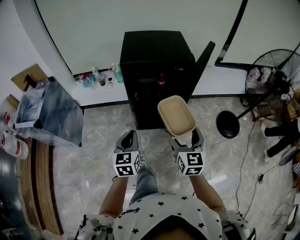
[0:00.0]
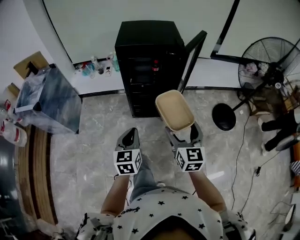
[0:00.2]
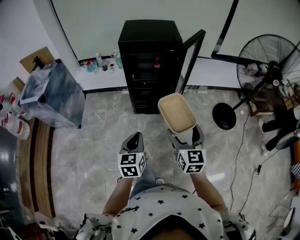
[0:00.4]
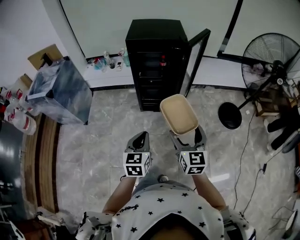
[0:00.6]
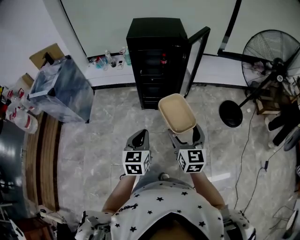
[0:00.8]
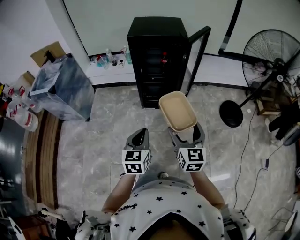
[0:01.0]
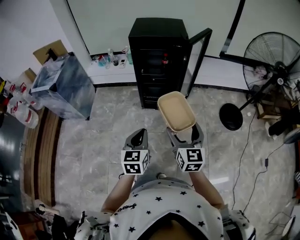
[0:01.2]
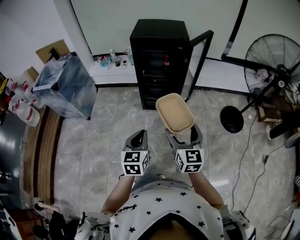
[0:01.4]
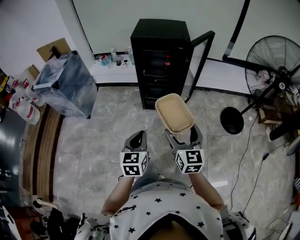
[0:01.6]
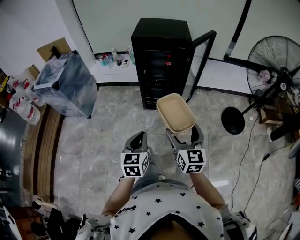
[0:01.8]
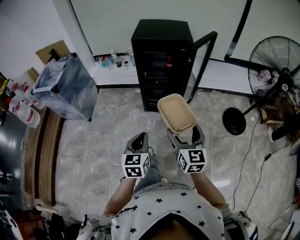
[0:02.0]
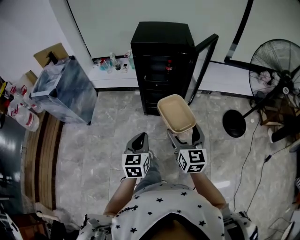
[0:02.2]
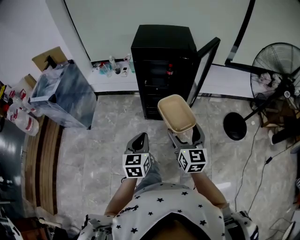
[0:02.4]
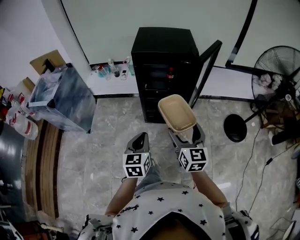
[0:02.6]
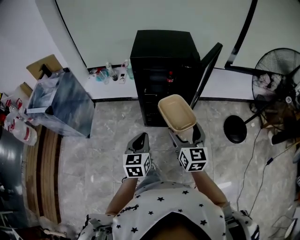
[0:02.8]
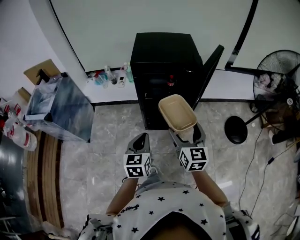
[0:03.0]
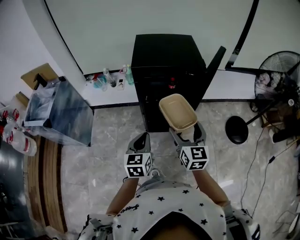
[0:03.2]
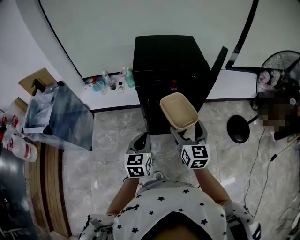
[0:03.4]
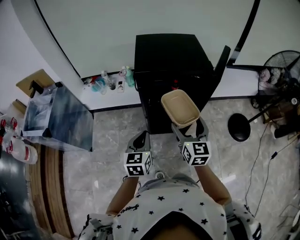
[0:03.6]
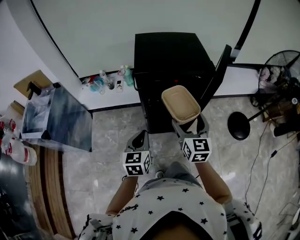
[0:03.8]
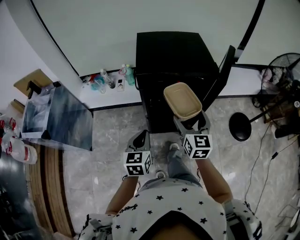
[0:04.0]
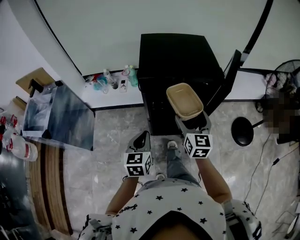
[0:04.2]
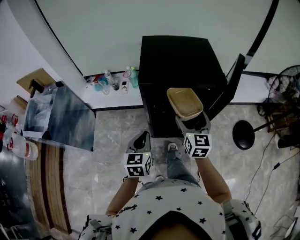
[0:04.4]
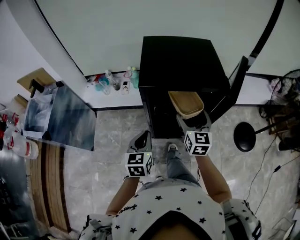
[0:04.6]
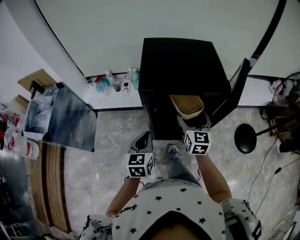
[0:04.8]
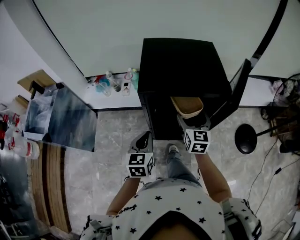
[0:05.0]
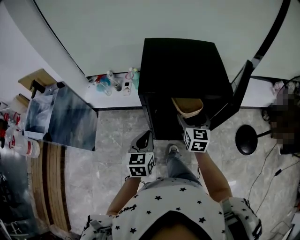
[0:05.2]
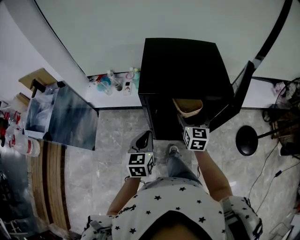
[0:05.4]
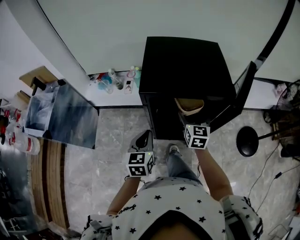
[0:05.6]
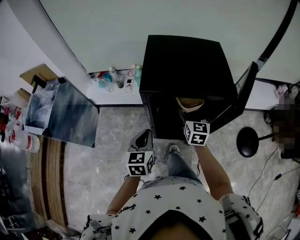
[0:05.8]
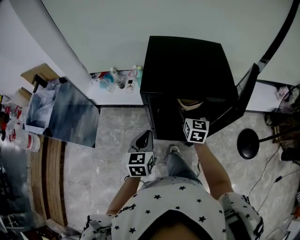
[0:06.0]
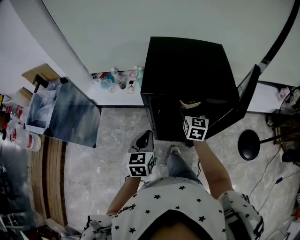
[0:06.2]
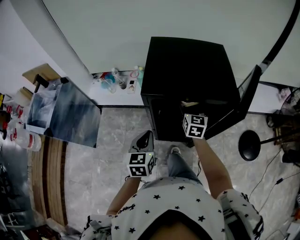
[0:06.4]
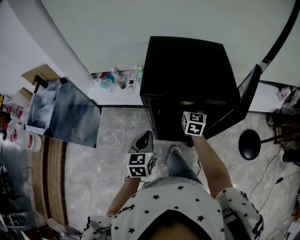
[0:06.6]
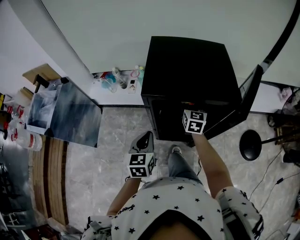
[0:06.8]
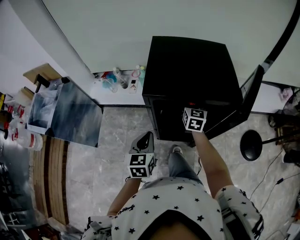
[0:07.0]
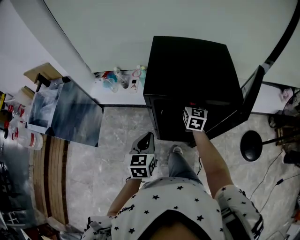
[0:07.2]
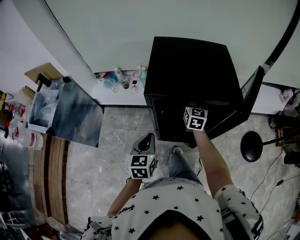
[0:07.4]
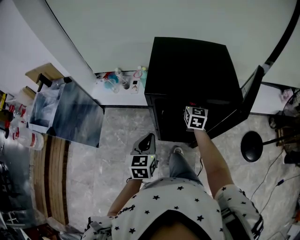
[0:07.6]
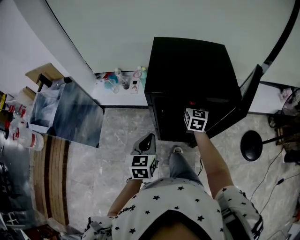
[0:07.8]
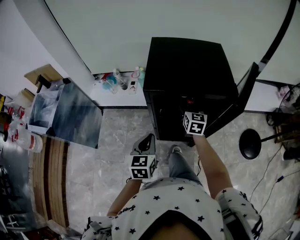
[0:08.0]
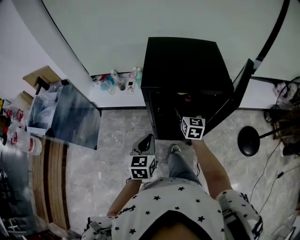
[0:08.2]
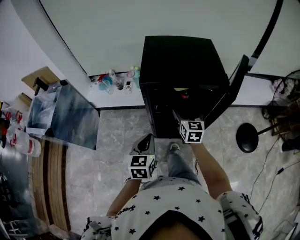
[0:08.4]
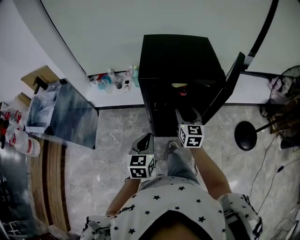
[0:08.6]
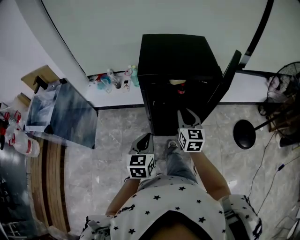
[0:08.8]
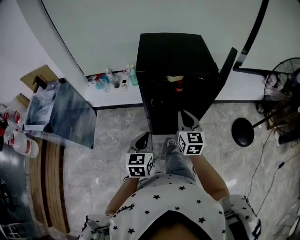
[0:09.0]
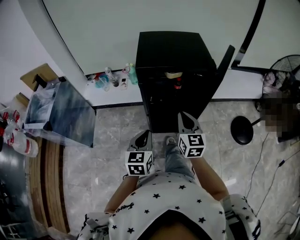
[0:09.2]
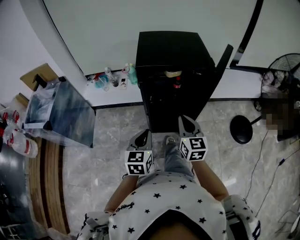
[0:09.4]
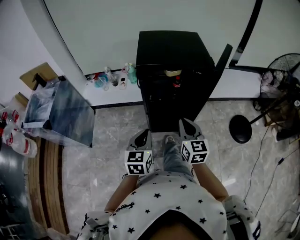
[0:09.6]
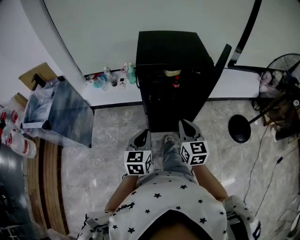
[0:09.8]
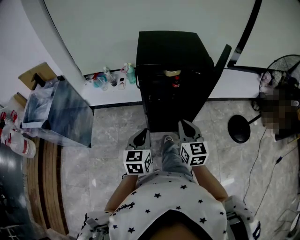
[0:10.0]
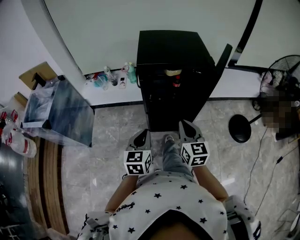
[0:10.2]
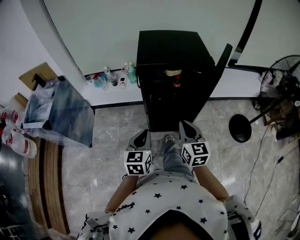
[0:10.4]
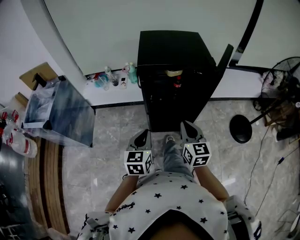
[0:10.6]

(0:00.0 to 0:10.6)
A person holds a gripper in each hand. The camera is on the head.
0:00.0 - 0:01.6: The two grippers go about 25 cm backward.
0:01.6 - 0:03.0: Both grippers travel together forward, approximately 25 cm.
0:03.0 - 0:04.6: Both grippers travel together forward, about 20 cm.
0:04.6 - 0:06.0: The right gripper is displaced forward and downward by about 10 cm.
0:06.0 - 0:07.6: The right gripper moves forward, about 5 cm.
0:07.6 - 0:09.0: The left gripper goes some 10 cm backward. The right gripper heads backward, covering about 25 cm, and closes.
0:09.0 - 0:10.6: The right gripper heads backward, covering roughly 10 cm.

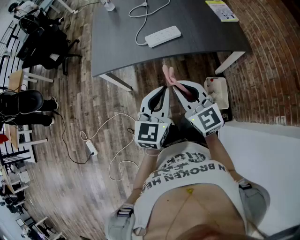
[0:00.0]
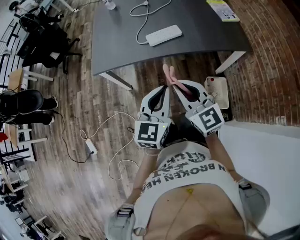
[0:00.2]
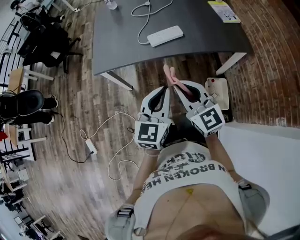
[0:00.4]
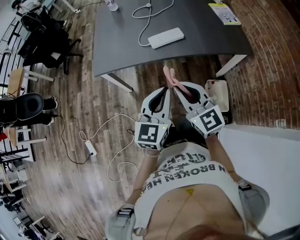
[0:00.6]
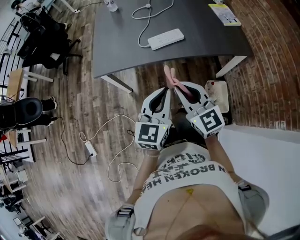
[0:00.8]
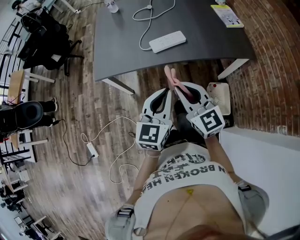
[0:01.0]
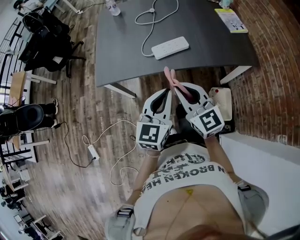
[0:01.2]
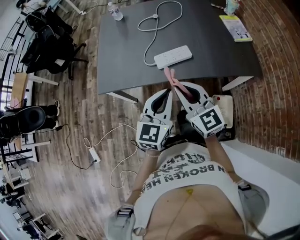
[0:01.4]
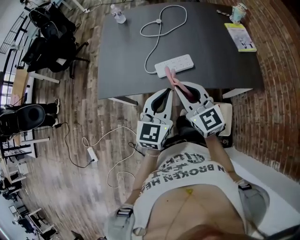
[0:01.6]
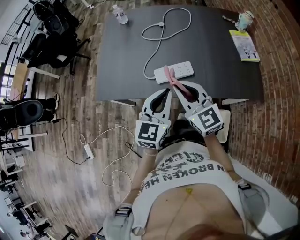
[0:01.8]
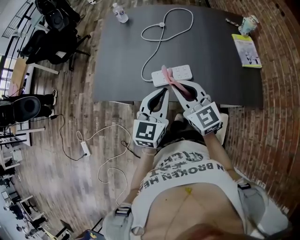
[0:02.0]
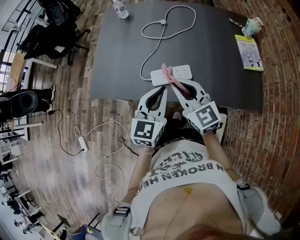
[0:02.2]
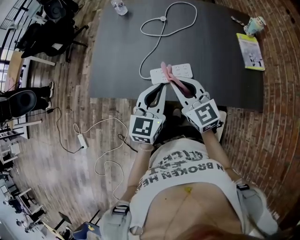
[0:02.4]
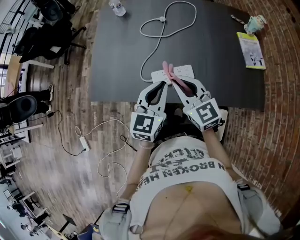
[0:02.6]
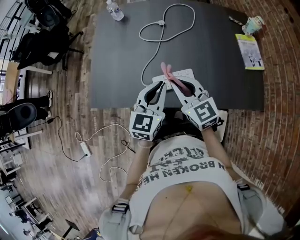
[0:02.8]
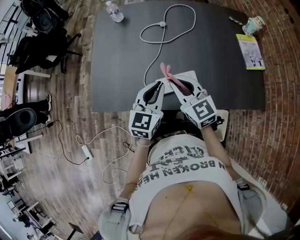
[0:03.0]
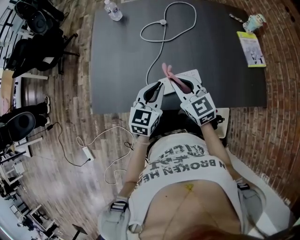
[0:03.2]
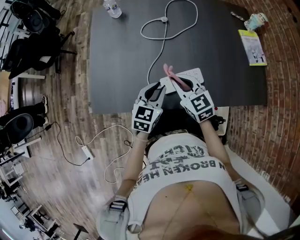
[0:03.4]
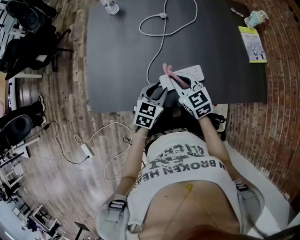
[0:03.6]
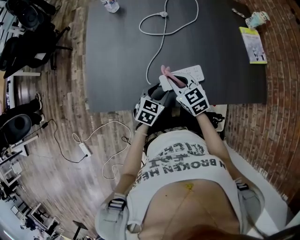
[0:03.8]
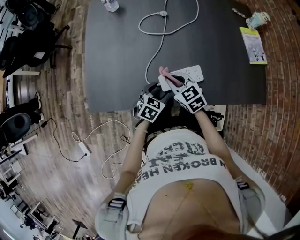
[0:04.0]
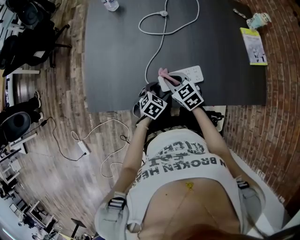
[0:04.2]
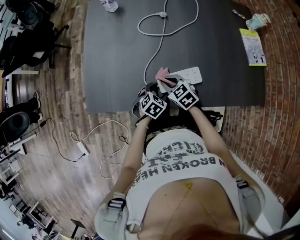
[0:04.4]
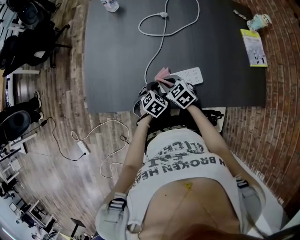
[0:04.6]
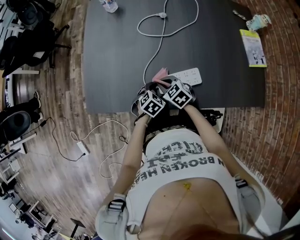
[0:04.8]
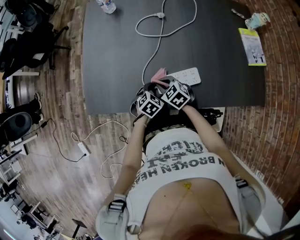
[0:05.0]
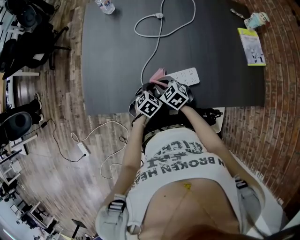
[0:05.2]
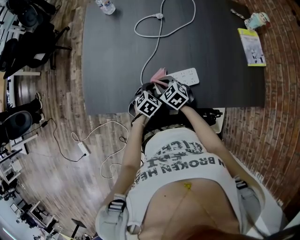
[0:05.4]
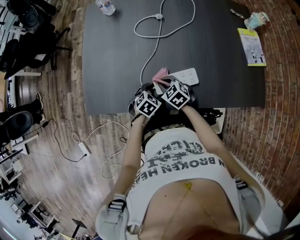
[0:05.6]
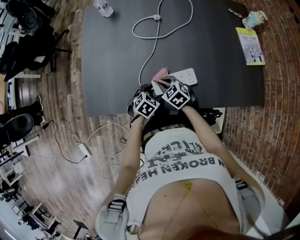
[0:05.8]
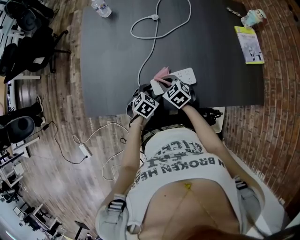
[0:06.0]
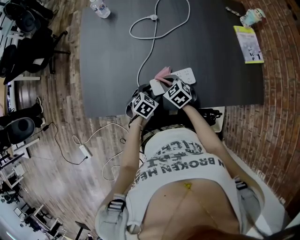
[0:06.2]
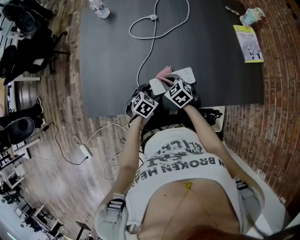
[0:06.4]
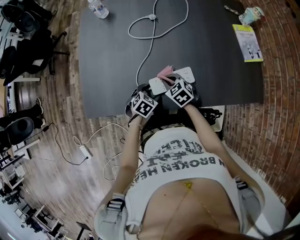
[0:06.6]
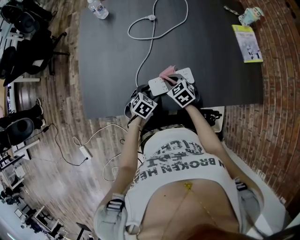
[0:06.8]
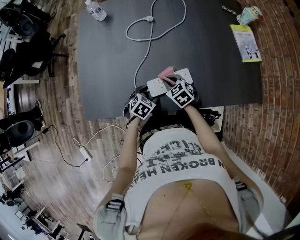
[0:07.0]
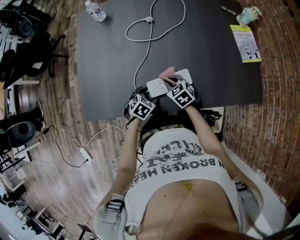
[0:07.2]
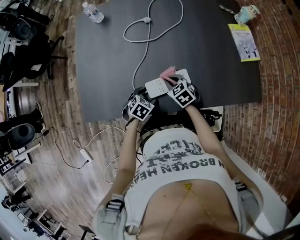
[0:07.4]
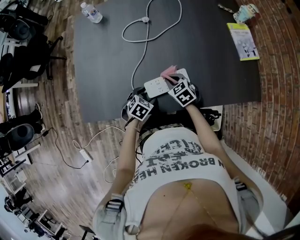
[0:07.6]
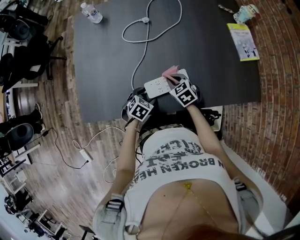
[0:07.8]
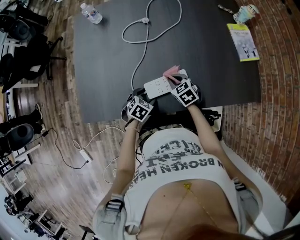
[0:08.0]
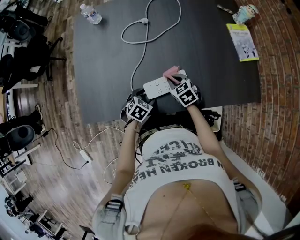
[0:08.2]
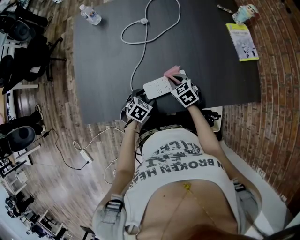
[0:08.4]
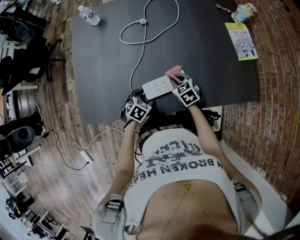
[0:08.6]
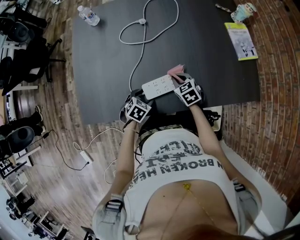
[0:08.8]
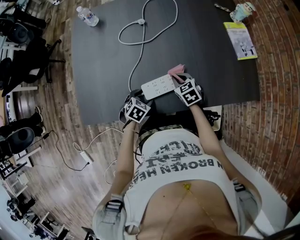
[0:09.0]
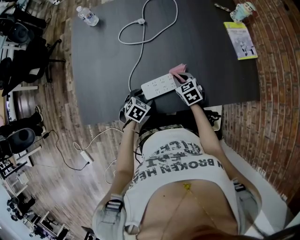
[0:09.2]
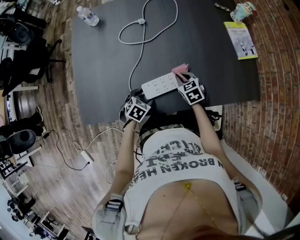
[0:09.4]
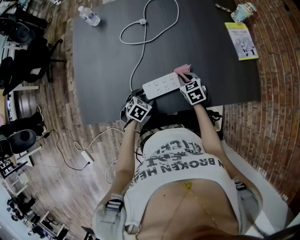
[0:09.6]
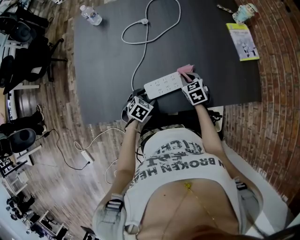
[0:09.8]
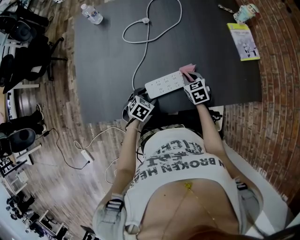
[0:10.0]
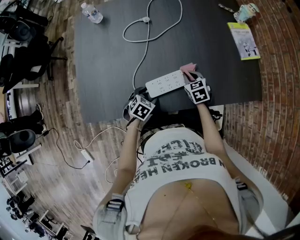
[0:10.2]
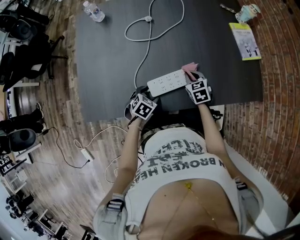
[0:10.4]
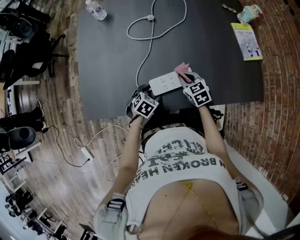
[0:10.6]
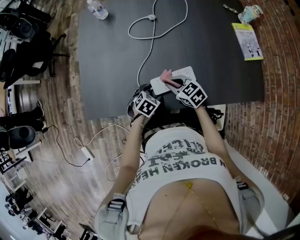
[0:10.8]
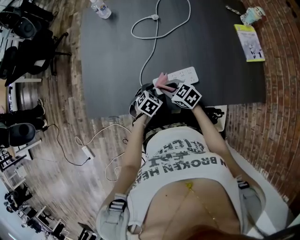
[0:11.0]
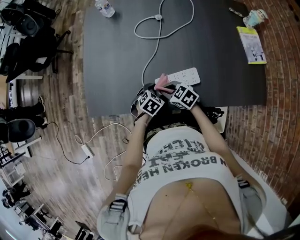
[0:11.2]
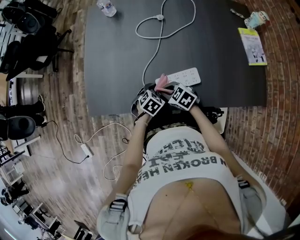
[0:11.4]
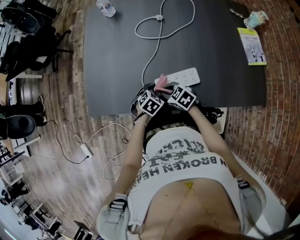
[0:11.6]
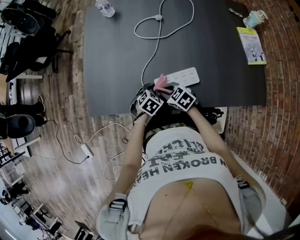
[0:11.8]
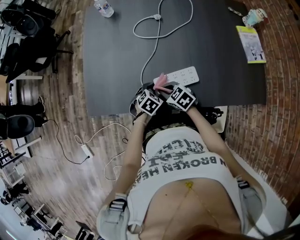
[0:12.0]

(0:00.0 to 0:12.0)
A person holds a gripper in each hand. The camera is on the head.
0:00.0 - 0:01.6: The grippers both shift forward by roughly 20 cm.
0:01.6 - 0:03.0: The grippers both shift forward by about 20 cm.
0:03.0 - 0:04.4: The grippers both shift downward by roughly 25 cm. The right gripper turns by approximately 30 degrees. The left gripper tilts its fingers some 40 degrees downward, and opens its fingers.
0:04.4 - 0:06.0: The grippers stay close to where they were, moving slightly.
0:06.0 - 0:07.6: The right gripper moves to the right, roughly 5 cm.
0:07.6 - 0:09.0: The right gripper heads to the right, covering about 5 cm.
0:09.0 - 0:10.4: There are only small adjustments of the grippers.
0:10.4 - 0:12.0: The right gripper ends up roughly 20 cm from where it was, and turns by roughly 40 degrees.

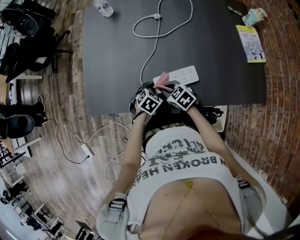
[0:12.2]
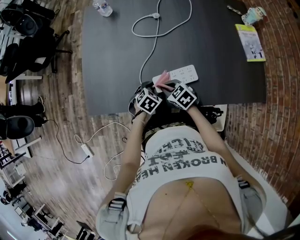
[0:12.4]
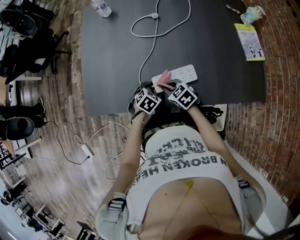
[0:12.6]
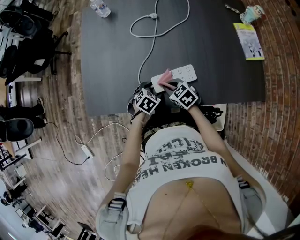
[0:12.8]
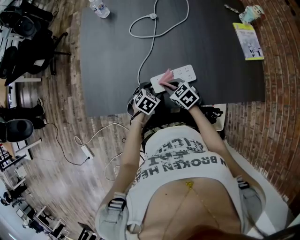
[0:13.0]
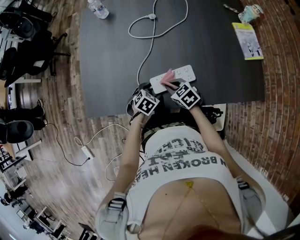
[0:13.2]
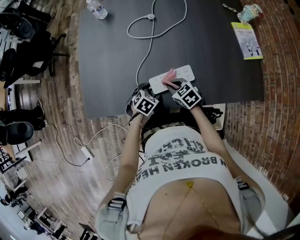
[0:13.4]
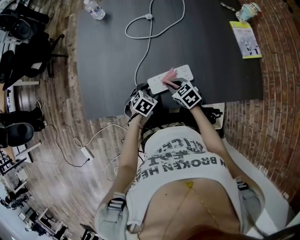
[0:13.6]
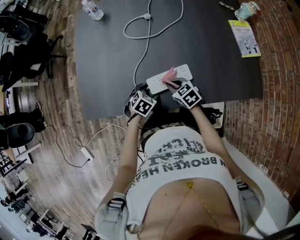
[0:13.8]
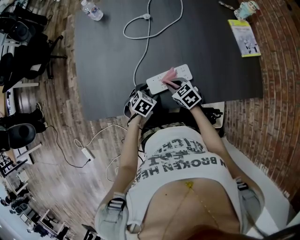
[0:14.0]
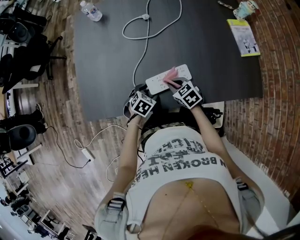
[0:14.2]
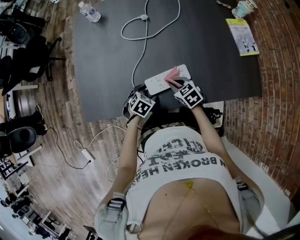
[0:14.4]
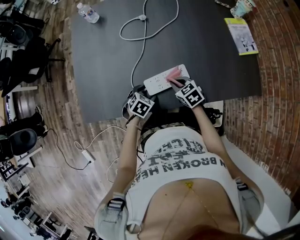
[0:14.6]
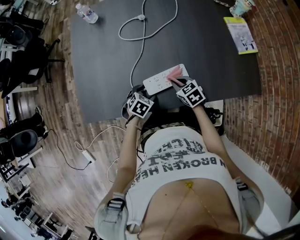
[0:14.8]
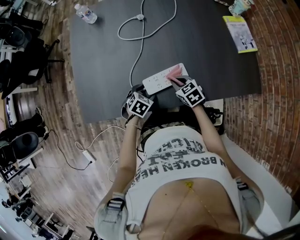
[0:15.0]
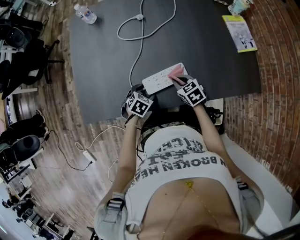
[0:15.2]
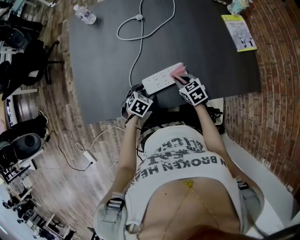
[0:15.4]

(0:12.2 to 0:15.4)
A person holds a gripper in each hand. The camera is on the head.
0:12.2 - 0:13.8: The right gripper shifts roughly 5 cm to the right.
0:13.8 - 0:15.4: The right gripper travels to the right by some 5 cm.
